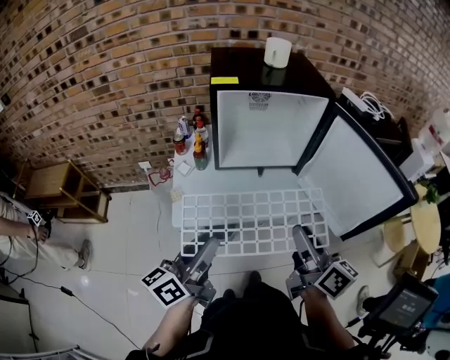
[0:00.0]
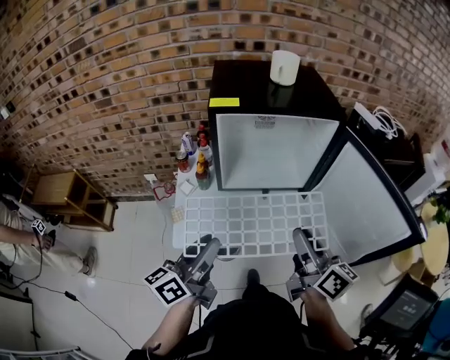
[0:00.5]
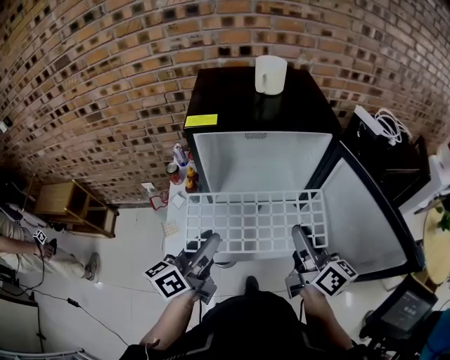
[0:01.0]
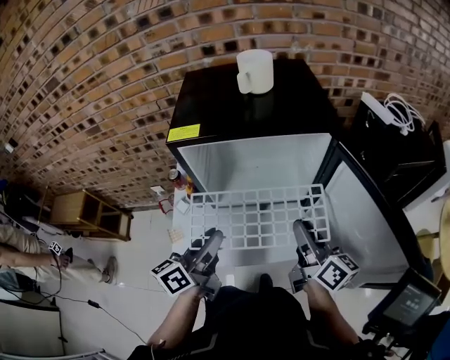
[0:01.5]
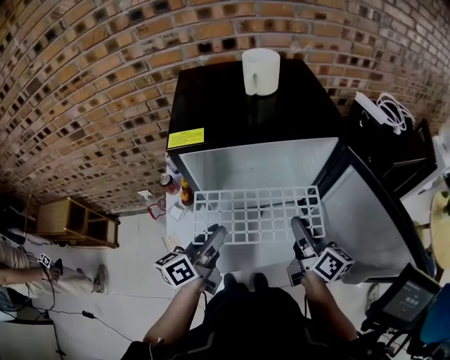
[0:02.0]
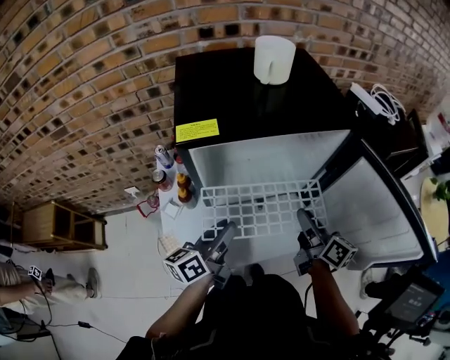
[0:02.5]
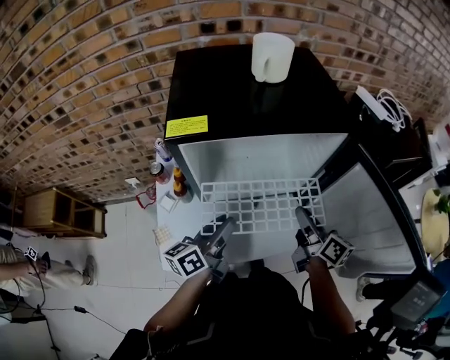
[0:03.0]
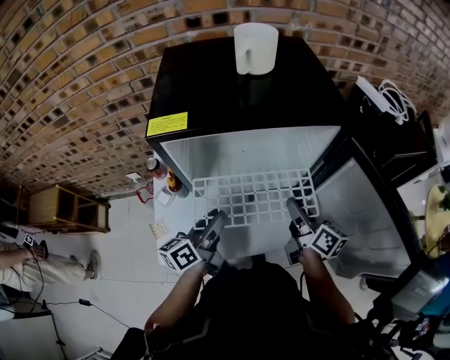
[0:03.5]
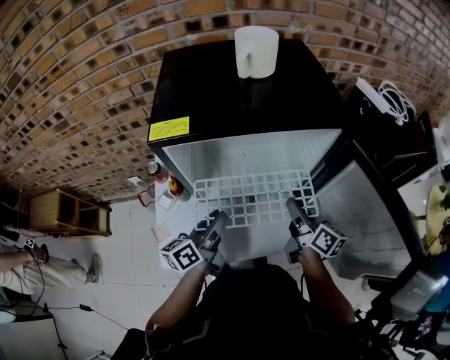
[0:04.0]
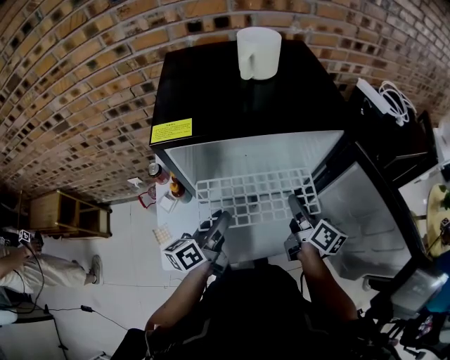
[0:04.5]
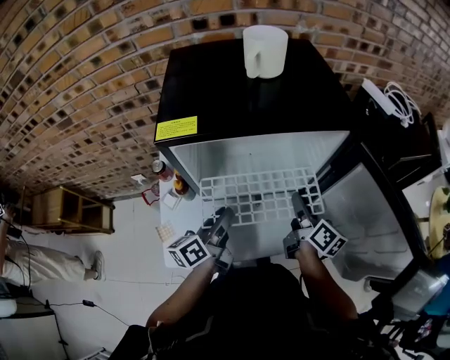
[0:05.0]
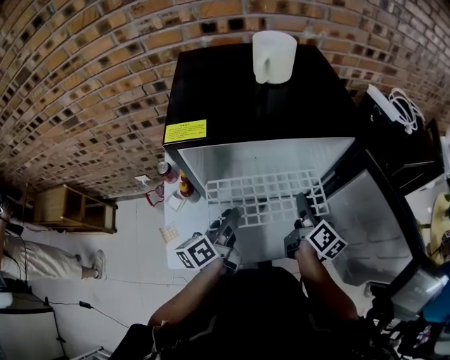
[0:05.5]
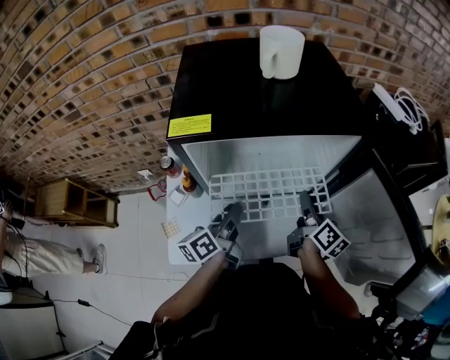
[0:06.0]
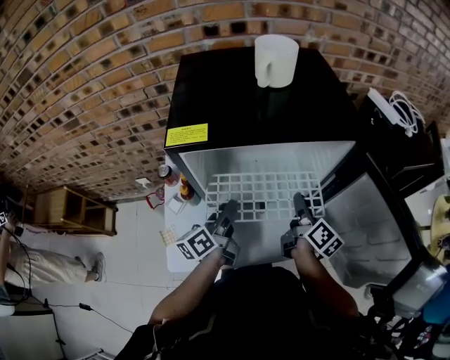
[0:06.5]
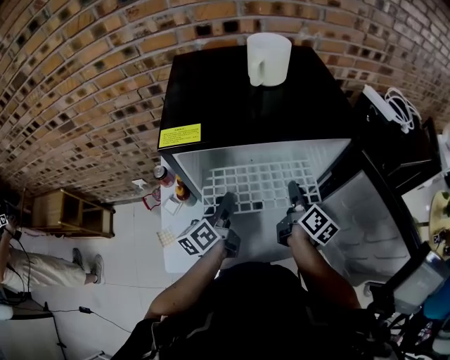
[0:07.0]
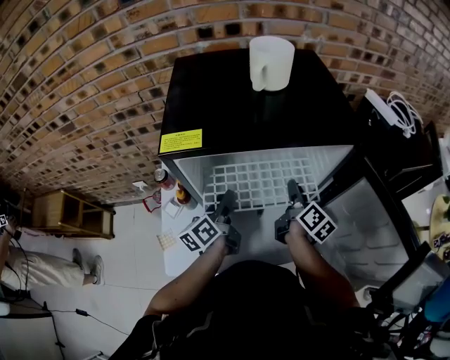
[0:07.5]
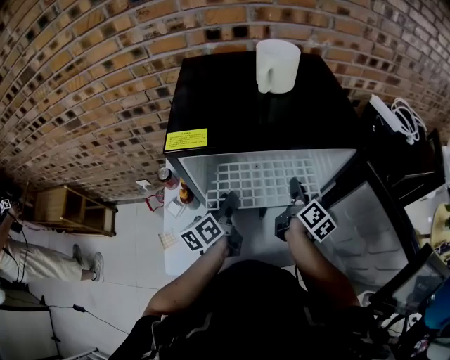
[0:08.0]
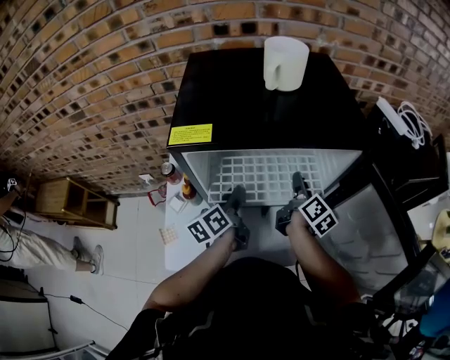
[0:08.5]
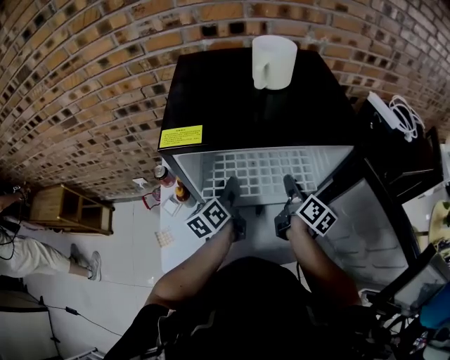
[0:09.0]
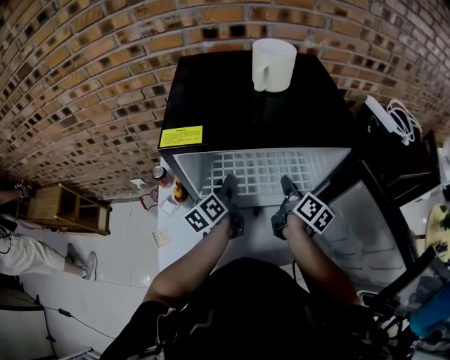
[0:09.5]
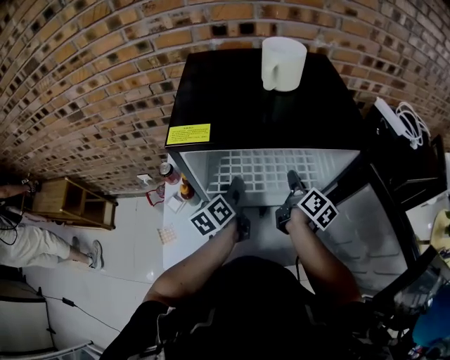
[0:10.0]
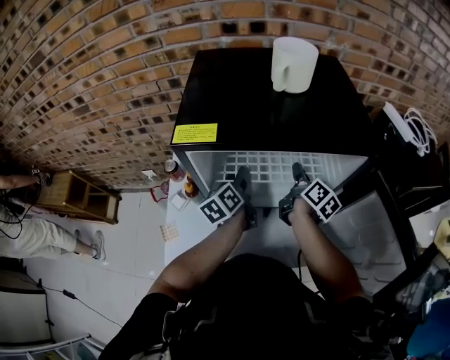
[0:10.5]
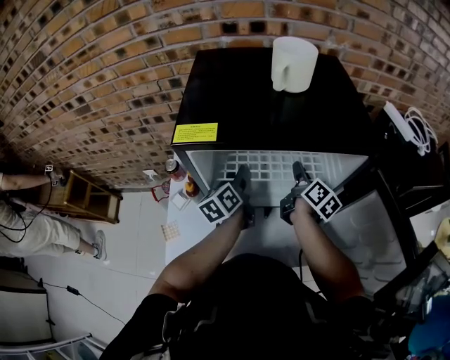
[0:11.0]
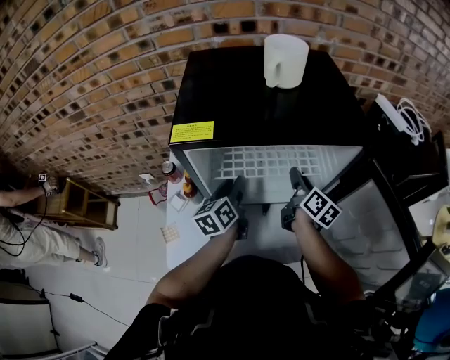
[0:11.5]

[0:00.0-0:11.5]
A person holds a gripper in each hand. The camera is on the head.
0:00.0 to 0:02.0: The grippers both shift forward by about 25 cm.
0:02.0 to 0:04.0: The left gripper moves downward, approximately 5 cm; the right gripper travels downward and forward by about 10 cm.
0:04.0 to 0:06.0: There are only small adjustments of the grippers.
0:06.0 to 0:07.5: Both grippers move forward, about 5 cm.
0:07.5 to 0:09.5: The grippers move only a little.
0:09.5 to 0:11.5: The grippers make only small movements.

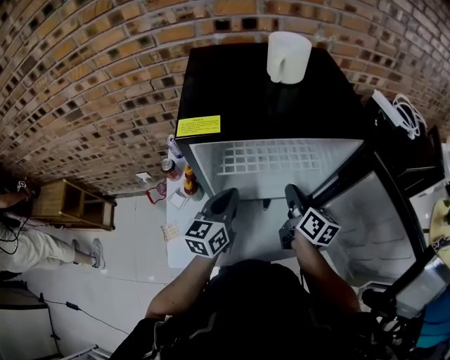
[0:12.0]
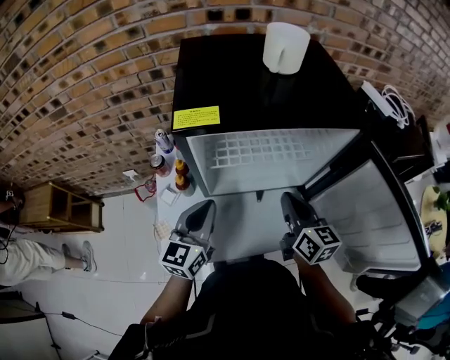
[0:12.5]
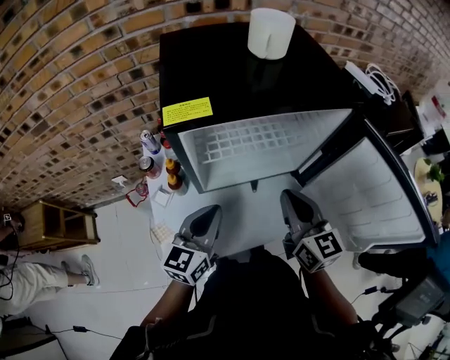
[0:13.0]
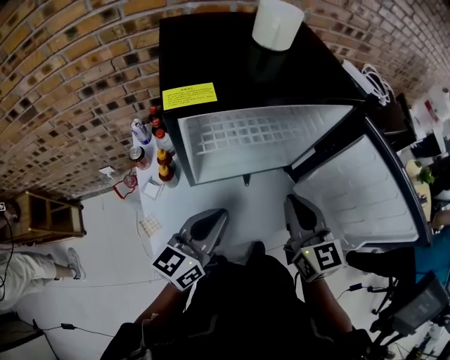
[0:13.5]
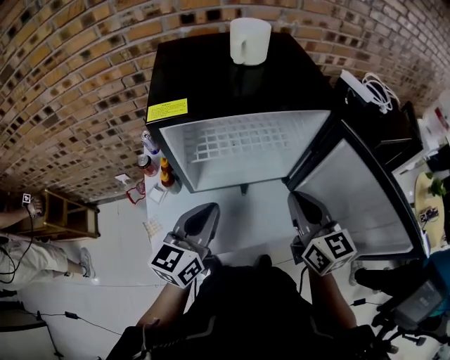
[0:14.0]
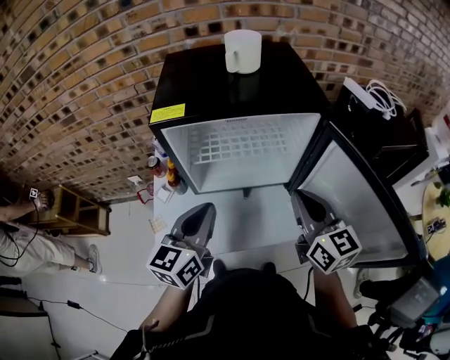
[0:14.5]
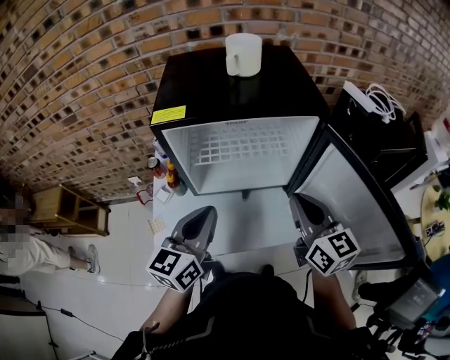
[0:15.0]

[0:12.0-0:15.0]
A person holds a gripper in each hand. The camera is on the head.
0:12.0 to 0:13.5: The right gripper goes approximately 15 cm backward and upward, and turns by some 40 degrees, while the left gripper travels backward by about 10 cm, and swivels some 20 degrees.
0:13.5 to 0:15.0: The left gripper is displaced upward by approximately 5 cm, and swivels roughly 20 degrees; the right gripper goes approximately 10 cm to the right and upward.

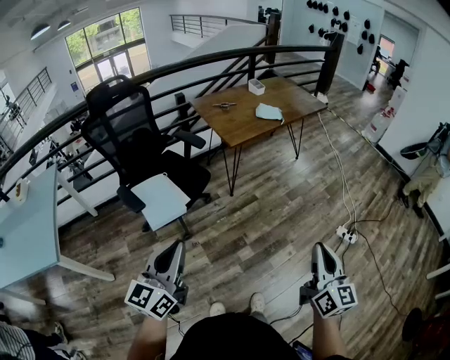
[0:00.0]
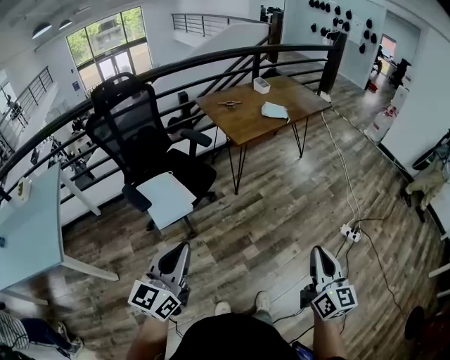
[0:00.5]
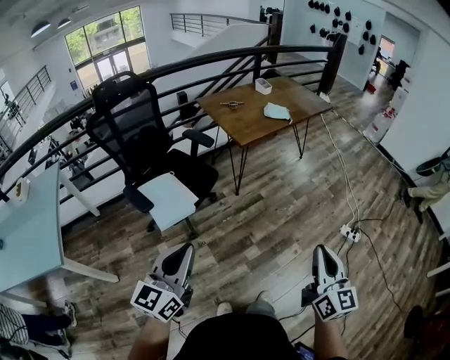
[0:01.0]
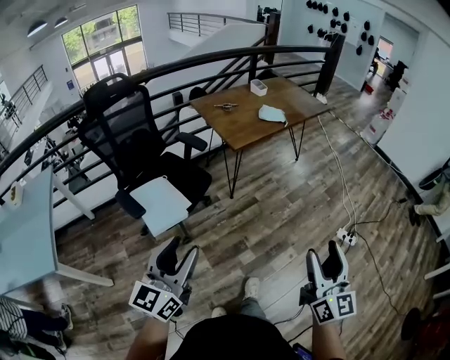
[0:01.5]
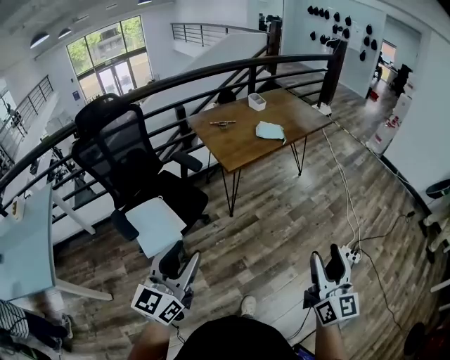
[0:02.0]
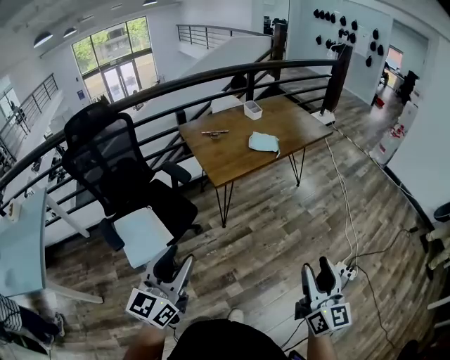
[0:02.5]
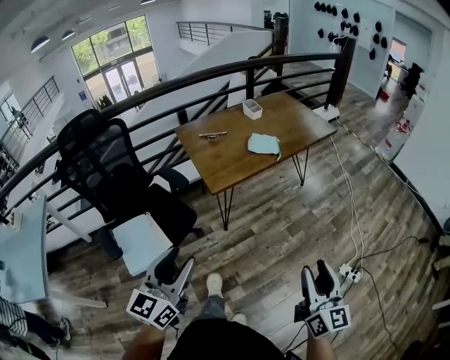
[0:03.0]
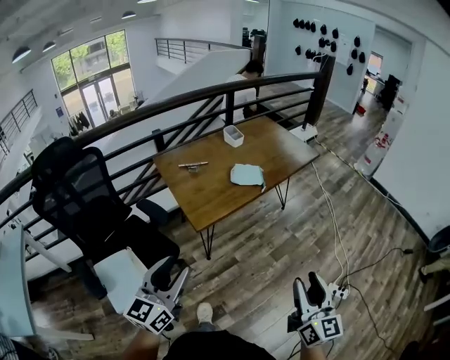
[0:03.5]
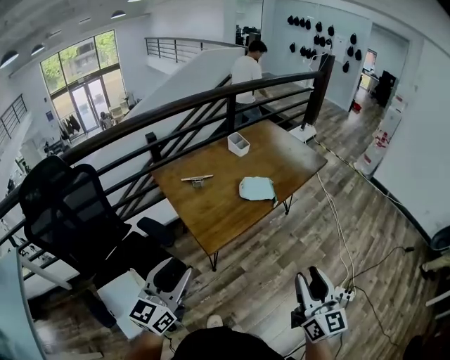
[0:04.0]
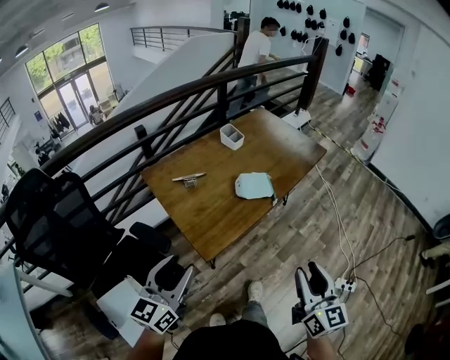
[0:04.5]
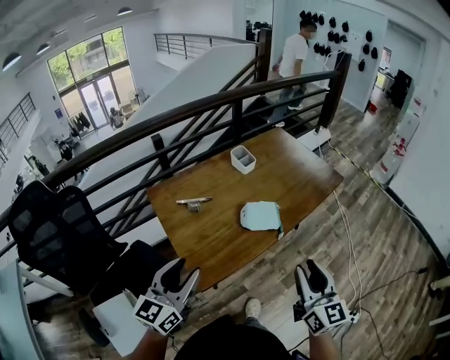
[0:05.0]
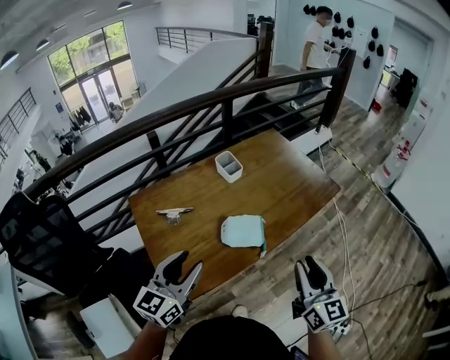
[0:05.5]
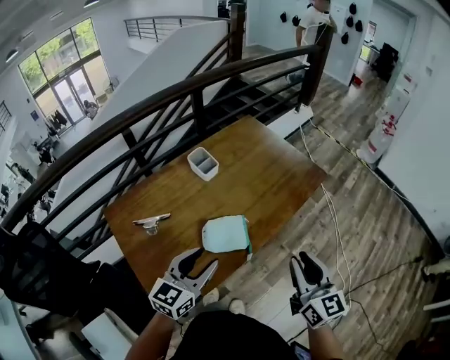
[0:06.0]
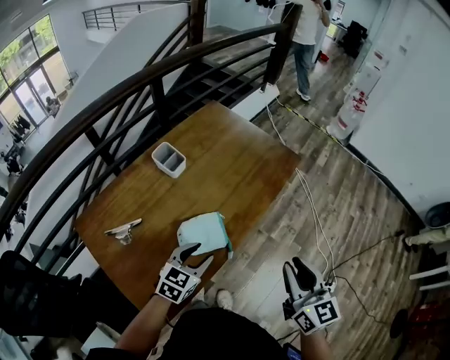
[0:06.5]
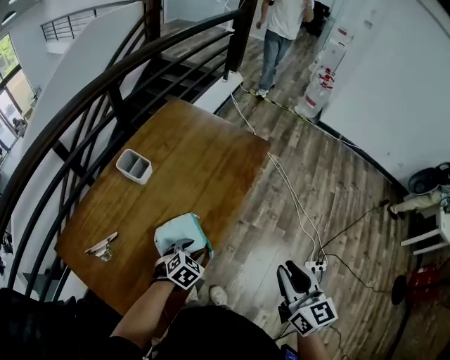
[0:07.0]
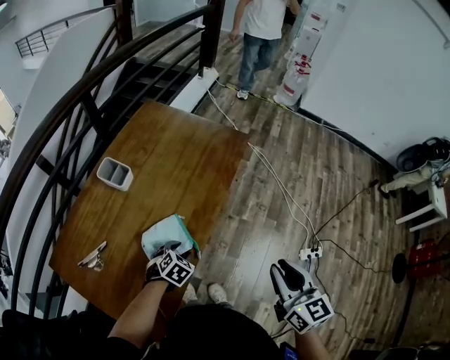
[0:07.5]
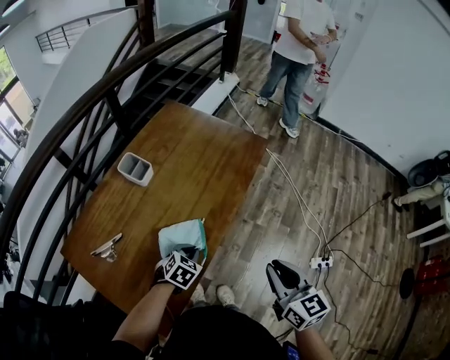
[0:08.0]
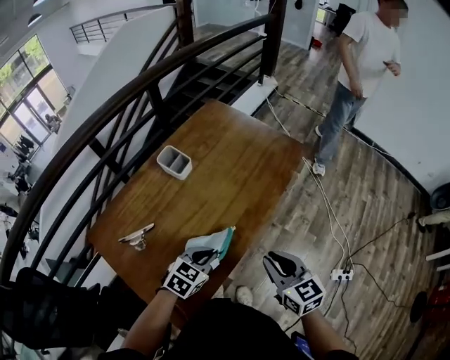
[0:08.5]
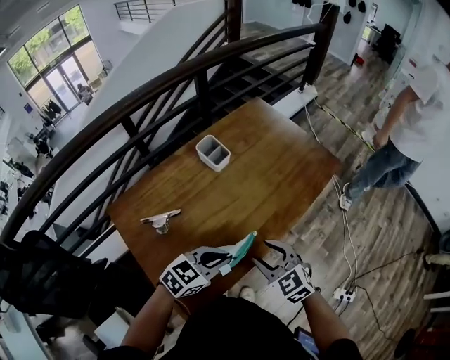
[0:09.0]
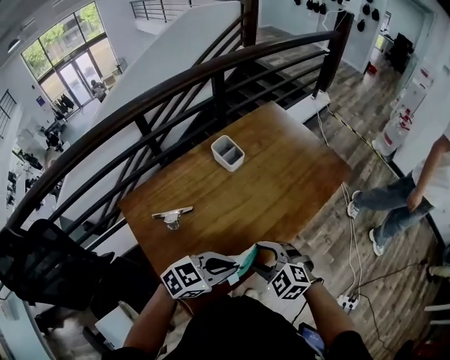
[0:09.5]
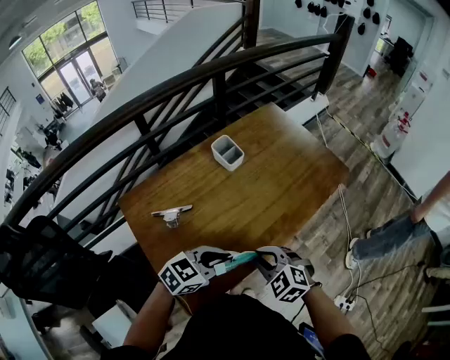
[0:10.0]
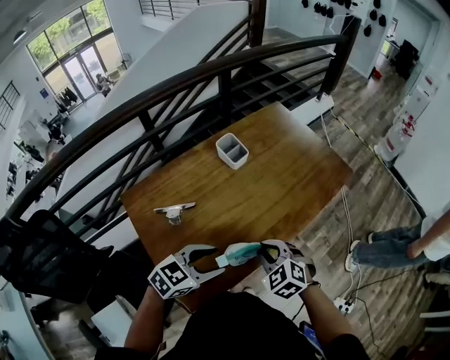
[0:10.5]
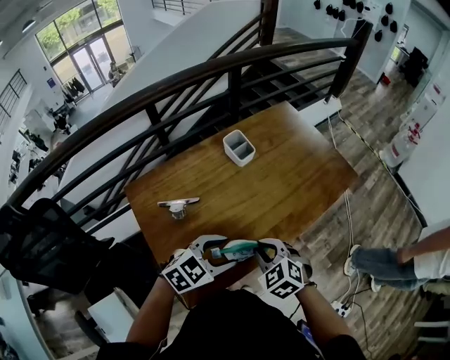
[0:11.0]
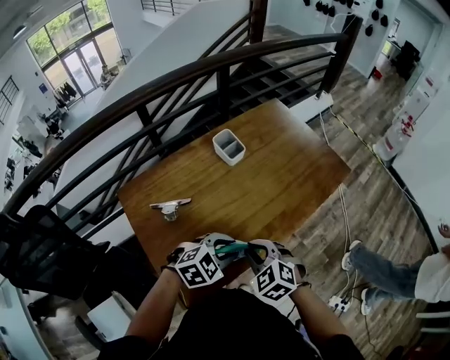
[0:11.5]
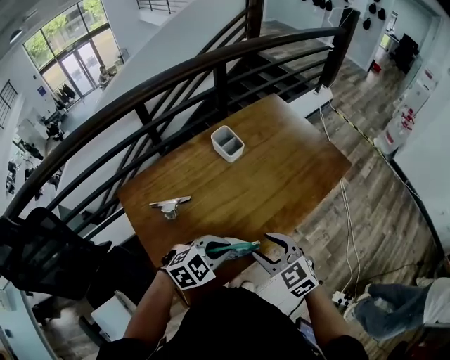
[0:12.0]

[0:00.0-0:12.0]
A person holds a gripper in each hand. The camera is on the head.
0:00.0 to 0:02.0: The grippers both shift forward by about 10 cm. The right gripper opens, while the left gripper opens up.
0:02.0 to 0:04.0: The two grippers go approximately 35 cm forward.
0:04.0 to 0:06.0: The left gripper is displaced forward and to the right by approximately 40 cm, and rotates approximately 20 degrees, while the right gripper goes some 35 cm forward.
0:06.0 to 0:08.0: The right gripper changes place by about 5 cm; the left gripper shifts roughly 20 cm downward and forward, angles its fingers downward, by roughly 40 degrees, and closes its fingers.
0:08.0 to 0:10.0: The right gripper shifts about 25 cm to the left, changes its angle by approximately 70 degrees, and opens, then closes again, while the left gripper goes some 20 cm upward, to the left and backward, and turns by approximately 30 degrees.
0:10.0 to 0:12.0: The left gripper rotates some 20 degrees, and opens, then closes once more, while the right gripper opens.
